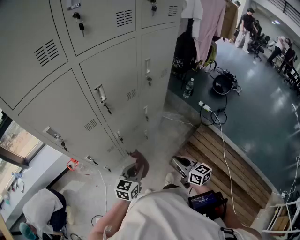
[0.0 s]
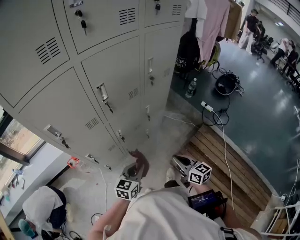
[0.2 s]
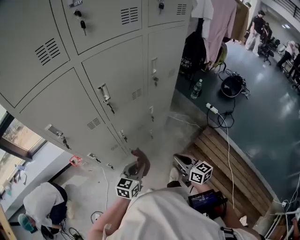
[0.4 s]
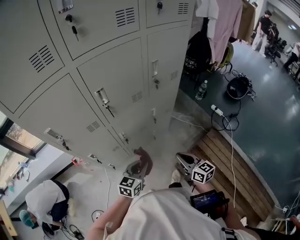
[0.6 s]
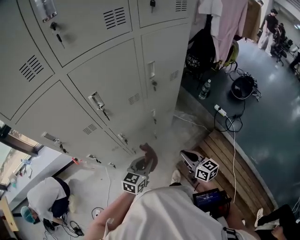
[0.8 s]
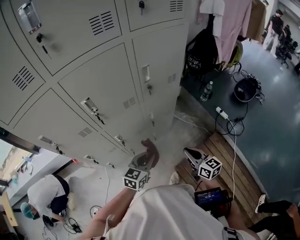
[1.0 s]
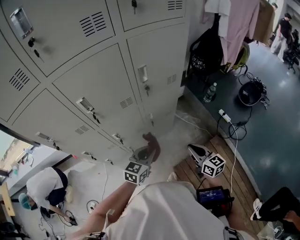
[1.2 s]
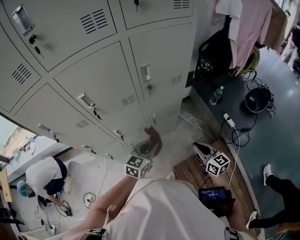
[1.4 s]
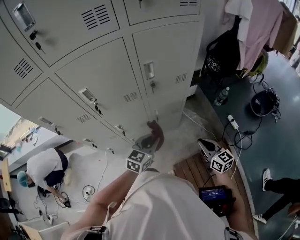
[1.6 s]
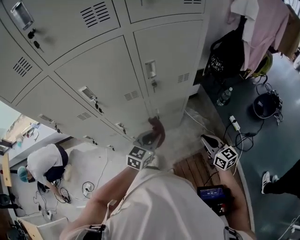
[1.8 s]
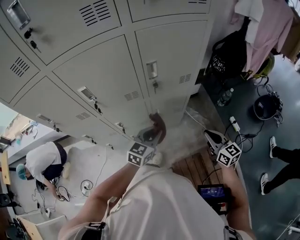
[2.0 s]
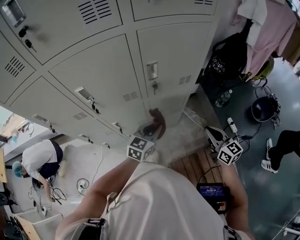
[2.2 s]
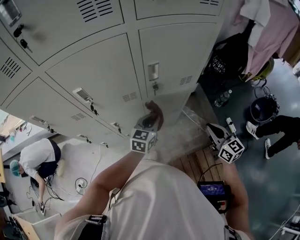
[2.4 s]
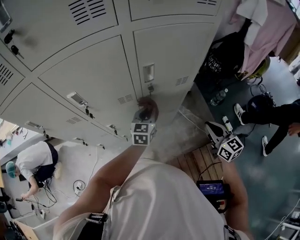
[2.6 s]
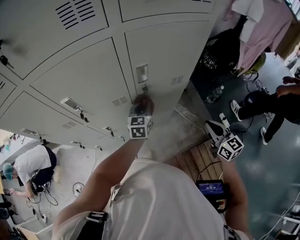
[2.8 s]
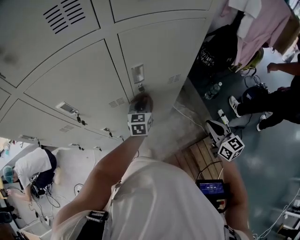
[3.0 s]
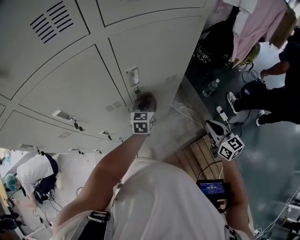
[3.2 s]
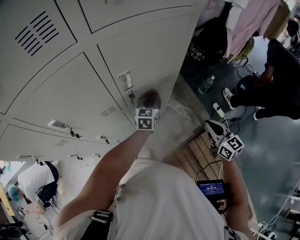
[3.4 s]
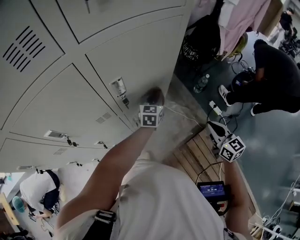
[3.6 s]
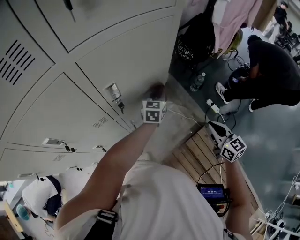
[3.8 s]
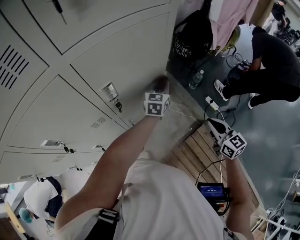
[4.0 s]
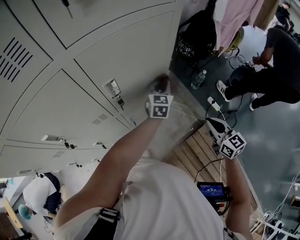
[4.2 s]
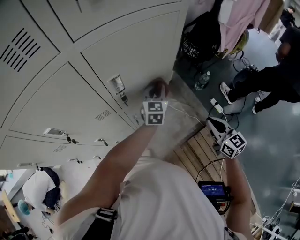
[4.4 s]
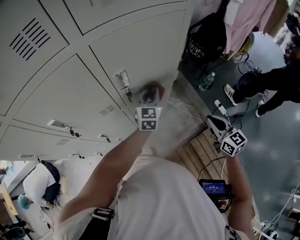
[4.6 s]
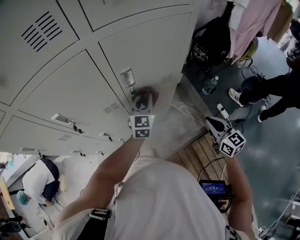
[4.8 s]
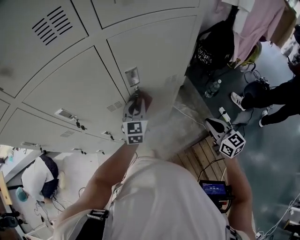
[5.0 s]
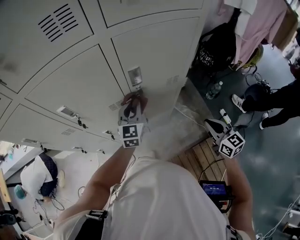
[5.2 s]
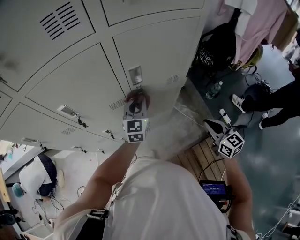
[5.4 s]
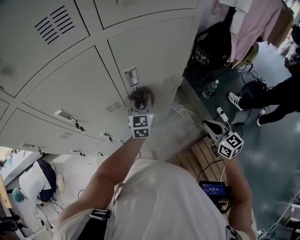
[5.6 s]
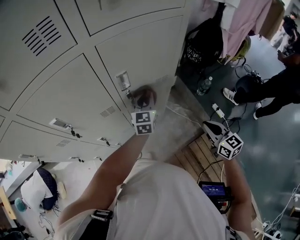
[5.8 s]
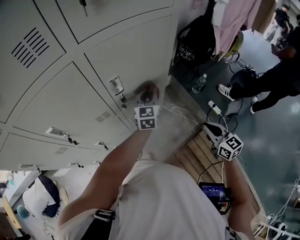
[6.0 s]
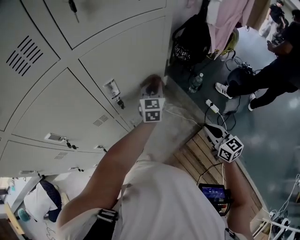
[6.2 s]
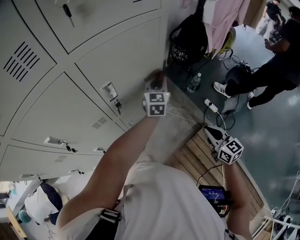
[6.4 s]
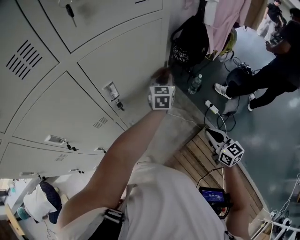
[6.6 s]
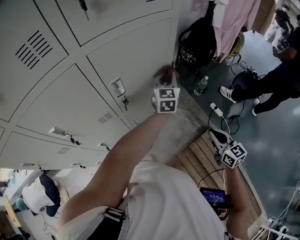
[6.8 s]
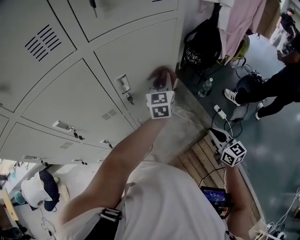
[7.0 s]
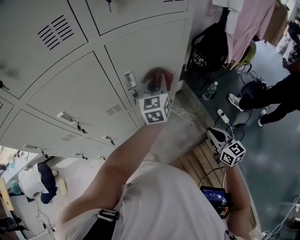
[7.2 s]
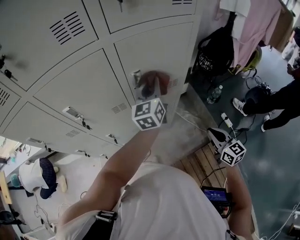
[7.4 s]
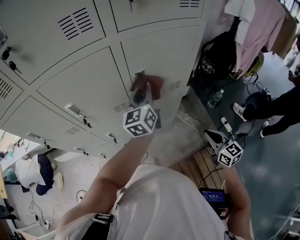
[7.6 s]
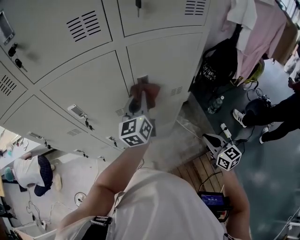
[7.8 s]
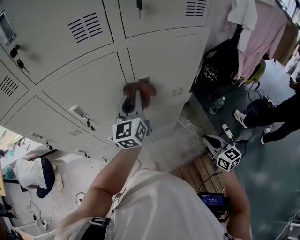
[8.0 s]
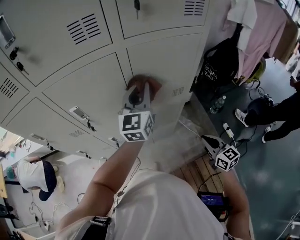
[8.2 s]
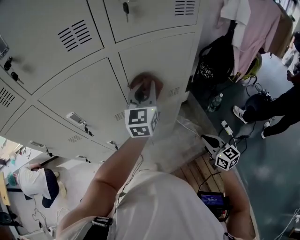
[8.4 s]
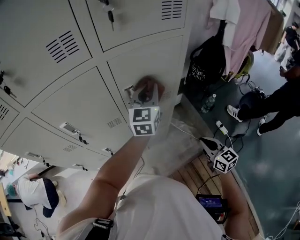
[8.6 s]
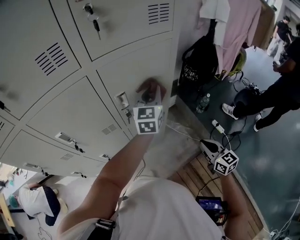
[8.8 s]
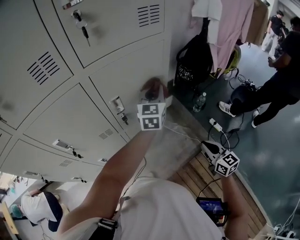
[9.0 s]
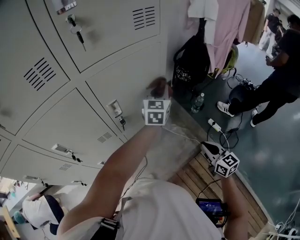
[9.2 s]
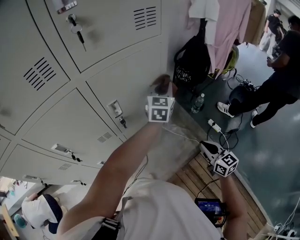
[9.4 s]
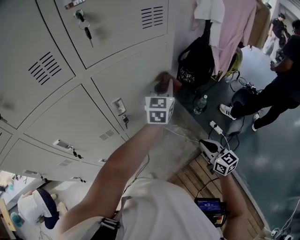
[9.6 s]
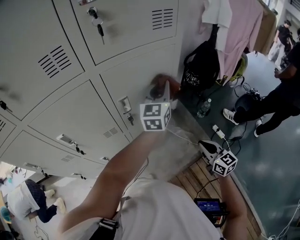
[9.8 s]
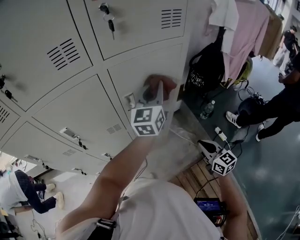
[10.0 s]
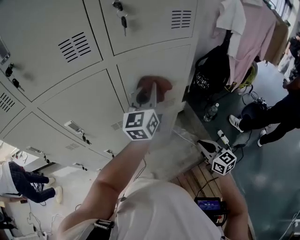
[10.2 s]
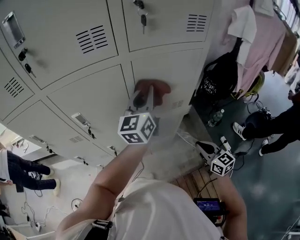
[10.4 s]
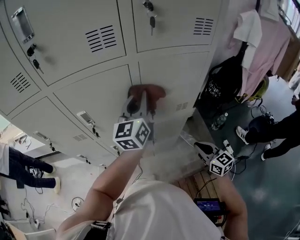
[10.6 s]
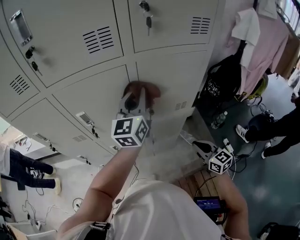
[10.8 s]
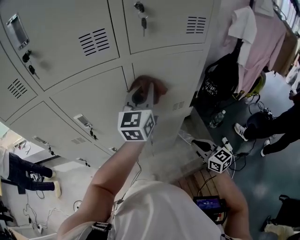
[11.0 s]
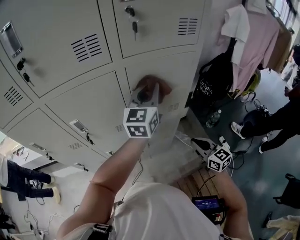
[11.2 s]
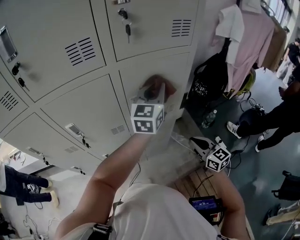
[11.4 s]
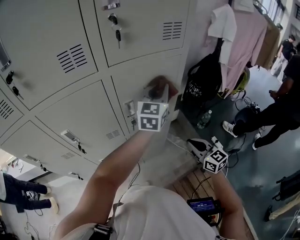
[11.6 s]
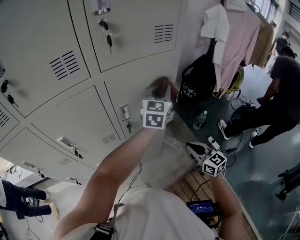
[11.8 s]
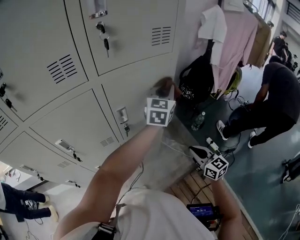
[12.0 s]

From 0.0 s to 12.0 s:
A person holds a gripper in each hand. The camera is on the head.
From 0.0 s to 1.6 s: The left gripper moves forward and to the right, approximately 25 cm, while the right gripper moves to the right and forward, some 30 cm.
From 1.6 s to 3.0 s: The left gripper moves forward, approximately 25 cm, and changes its angle by about 20 degrees. Meanwhile the right gripper shifts about 15 cm forward, to the right and upward.
From 3.0 s to 4.4 s: The left gripper is displaced to the right by roughly 15 cm.
From 4.4 s to 6.0 s: The left gripper goes to the left and returns, about 20 cm each way.
From 6.0 s to 7.6 s: The left gripper moves upward and to the left, about 20 cm, and swivels about 30 degrees.
From 7.6 s to 9.0 s: The right gripper shifts by roughly 5 cm. The left gripper moves to the right, some 15 cm, and turns by roughly 30 degrees.
From 9.0 s to 10.4 s: The right gripper moves to the left and forward, about 10 cm. Meanwhile the left gripper goes some 20 cm to the left and upward, and rotates some 20 degrees.
From 10.4 s to 12.0 s: The left gripper goes roughly 20 cm to the right, and rotates approximately 30 degrees.

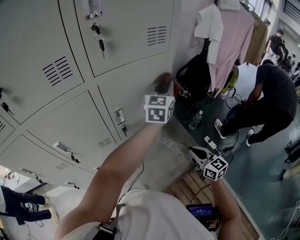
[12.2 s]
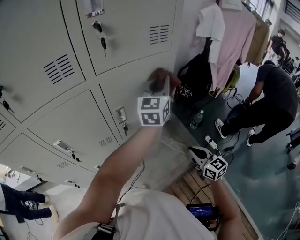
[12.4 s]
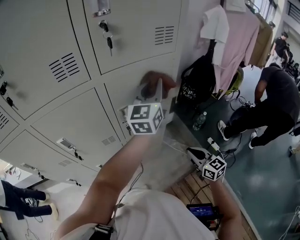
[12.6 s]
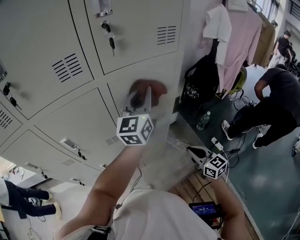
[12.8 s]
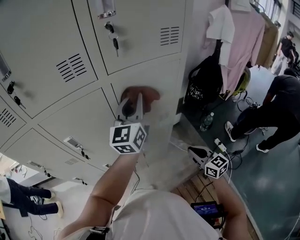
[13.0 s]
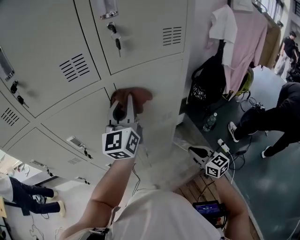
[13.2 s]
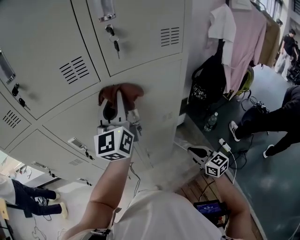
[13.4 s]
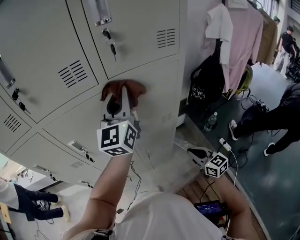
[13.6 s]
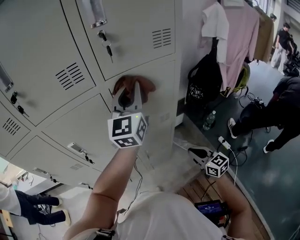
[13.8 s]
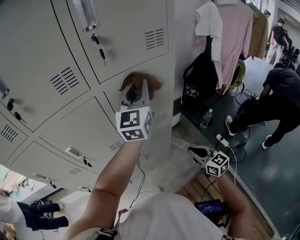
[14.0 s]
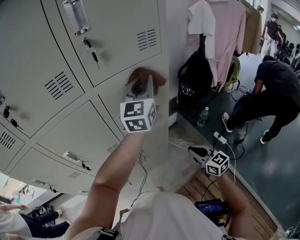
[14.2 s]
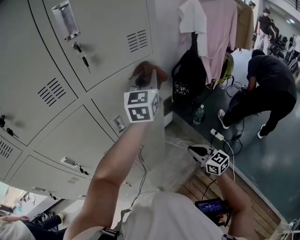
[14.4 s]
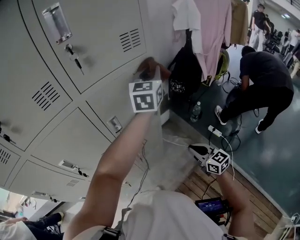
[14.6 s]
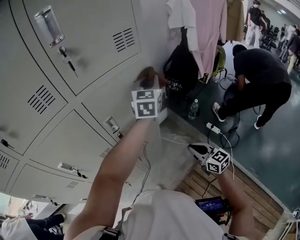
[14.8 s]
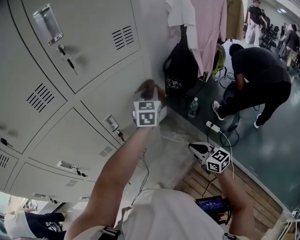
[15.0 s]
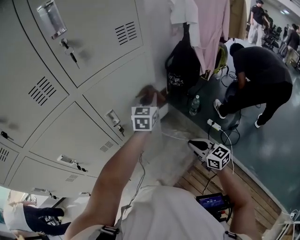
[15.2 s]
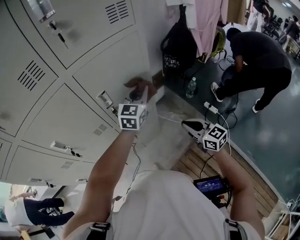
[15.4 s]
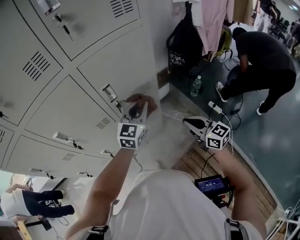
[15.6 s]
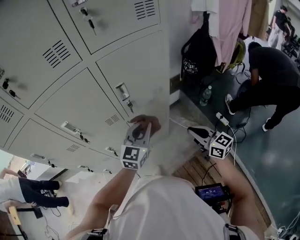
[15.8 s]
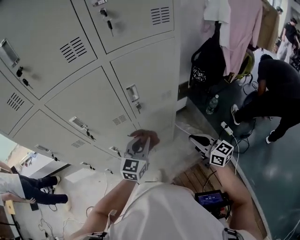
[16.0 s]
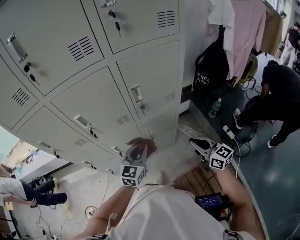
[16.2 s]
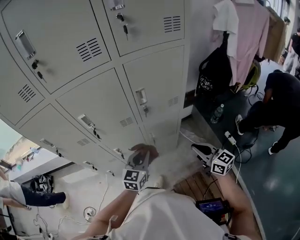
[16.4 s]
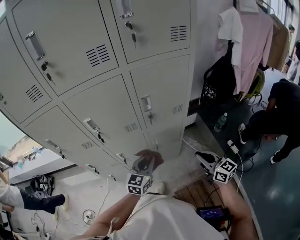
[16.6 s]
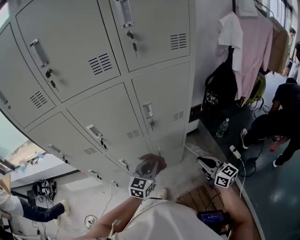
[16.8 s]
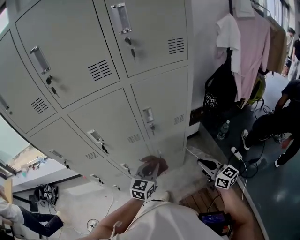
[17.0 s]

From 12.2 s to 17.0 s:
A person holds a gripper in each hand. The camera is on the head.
From 12.2 s to 13.8 s: The left gripper shifts some 20 cm to the left and upward, and rotates some 20 degrees; the right gripper heads to the left, covering roughly 5 cm.
From 13.8 s to 15.4 s: The left gripper shifts about 25 cm downward and to the right, and turns by about 30 degrees.
From 15.4 s to 17.0 s: The right gripper heads to the left, covering roughly 5 cm. The left gripper shifts about 25 cm backward, to the left and downward.

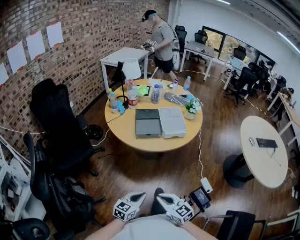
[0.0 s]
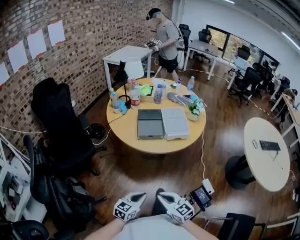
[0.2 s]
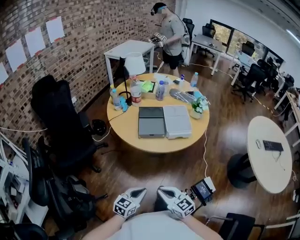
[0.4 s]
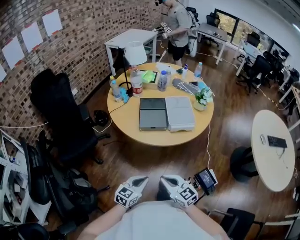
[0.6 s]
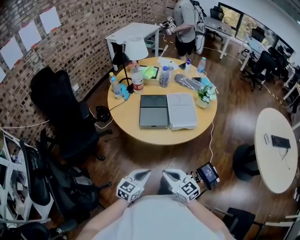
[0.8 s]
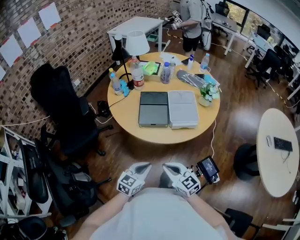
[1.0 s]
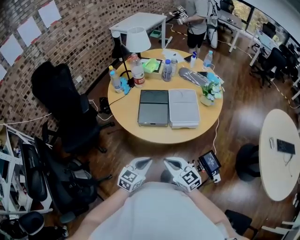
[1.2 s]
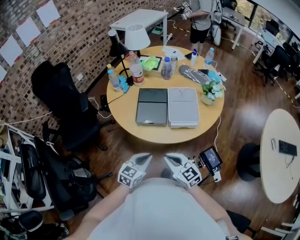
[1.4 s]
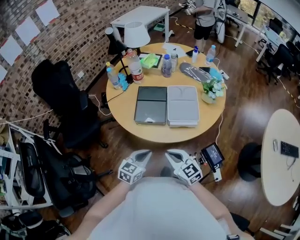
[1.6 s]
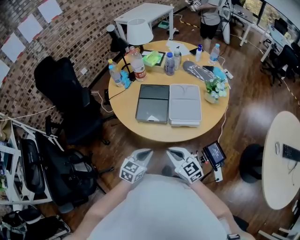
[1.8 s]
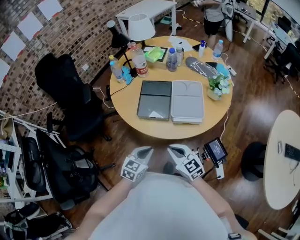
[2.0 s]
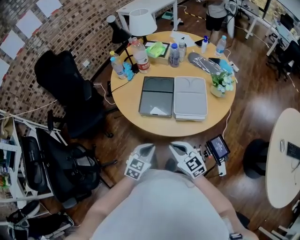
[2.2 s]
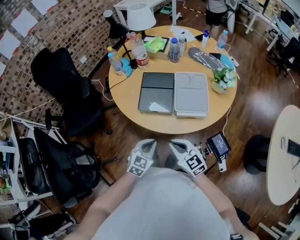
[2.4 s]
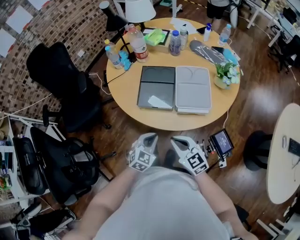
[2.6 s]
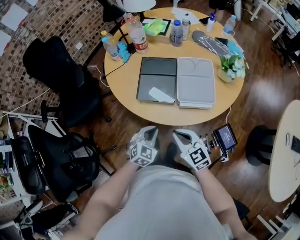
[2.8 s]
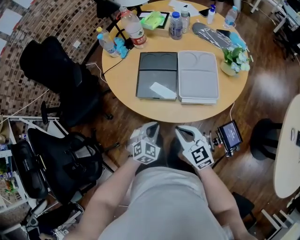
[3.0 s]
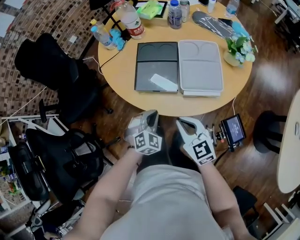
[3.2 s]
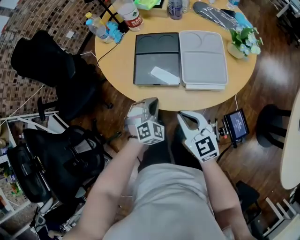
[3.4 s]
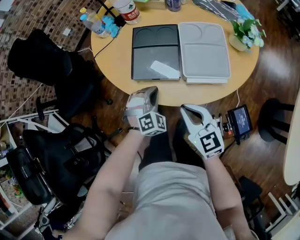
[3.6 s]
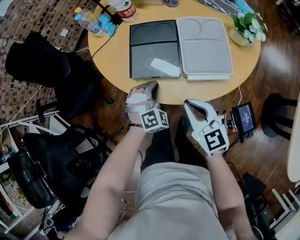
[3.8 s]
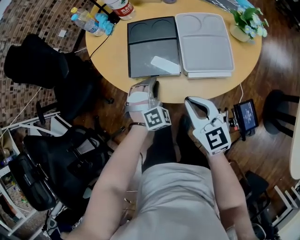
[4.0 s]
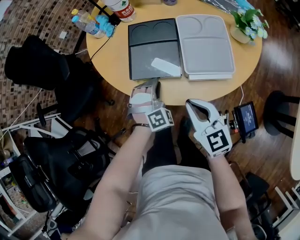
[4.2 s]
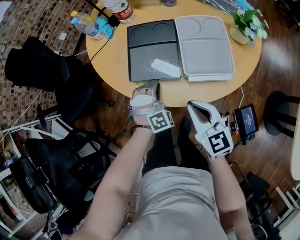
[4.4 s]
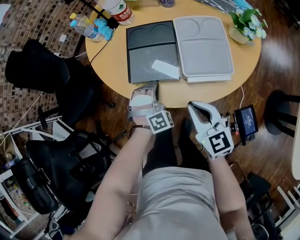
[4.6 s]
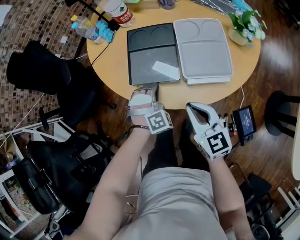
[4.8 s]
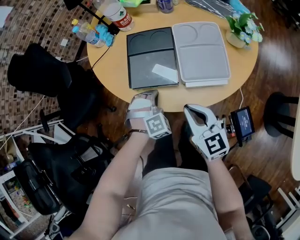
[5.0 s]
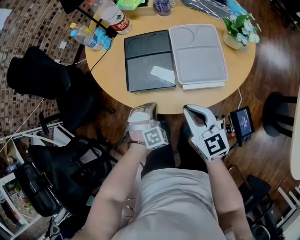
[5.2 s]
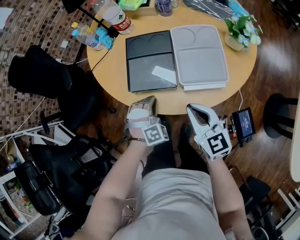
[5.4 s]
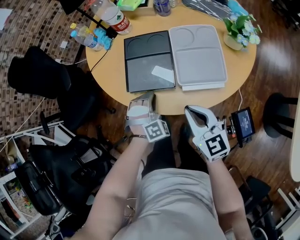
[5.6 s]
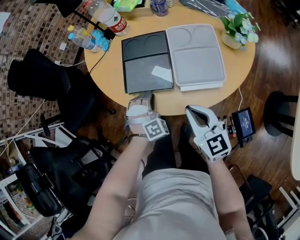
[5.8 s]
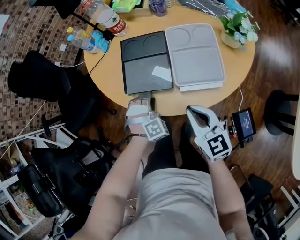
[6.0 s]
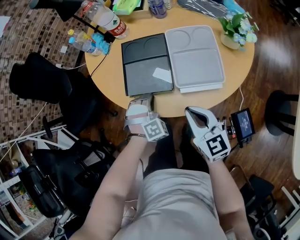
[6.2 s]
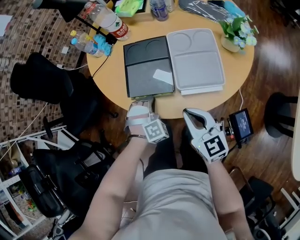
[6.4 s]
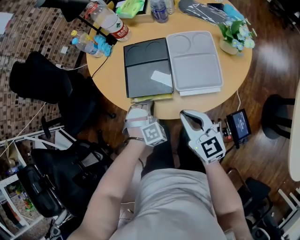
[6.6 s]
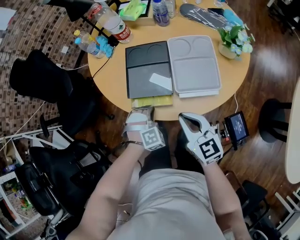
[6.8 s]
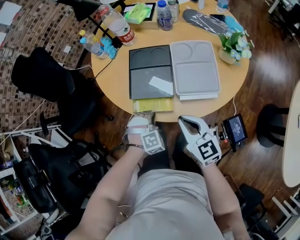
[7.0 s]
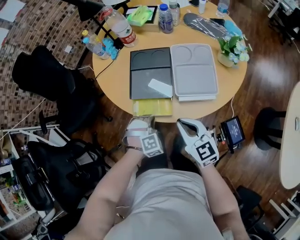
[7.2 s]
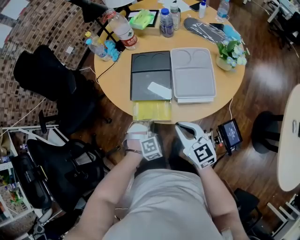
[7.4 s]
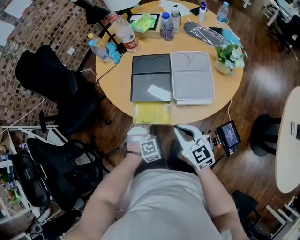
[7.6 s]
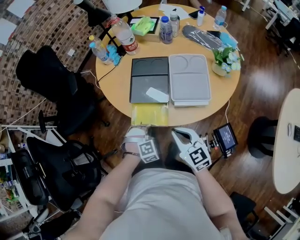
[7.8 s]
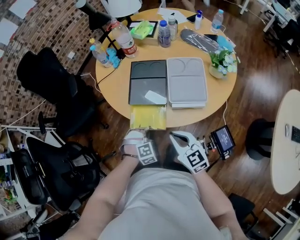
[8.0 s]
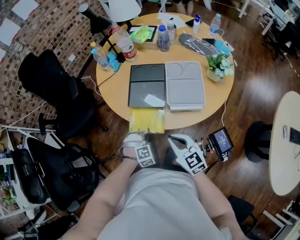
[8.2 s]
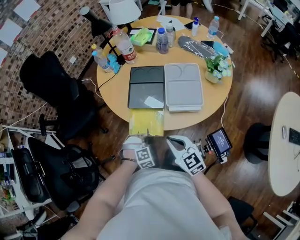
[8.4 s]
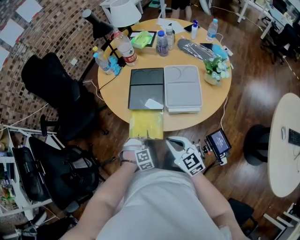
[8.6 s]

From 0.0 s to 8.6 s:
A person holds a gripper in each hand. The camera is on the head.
From 0.0 s to 1.4 s: Both grippers move forward, roughly 25 cm.
From 1.4 s to 2.8 s: The left gripper is displaced downward and forward by roughly 10 cm, and rotates some 30 degrees, while the right gripper shifts approximately 10 cm forward and downward.
From 2.8 s to 4.4 s: The right gripper moves some 5 cm. Meanwhile the left gripper travels forward and downward by some 15 cm, and rotates around the line of its fingers by about 40 degrees, clockwise from behind.
From 4.4 s to 5.8 s: There are only small adjustments of the grippers.
From 5.8 s to 7.2 s: The left gripper heads backward, covering about 5 cm, and opens, then closes once more.
From 7.2 s to 8.6 s: Both grippers travel together backward, roughly 5 cm.
